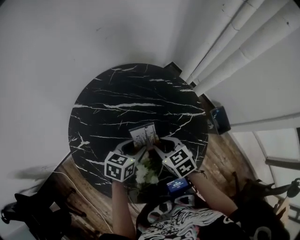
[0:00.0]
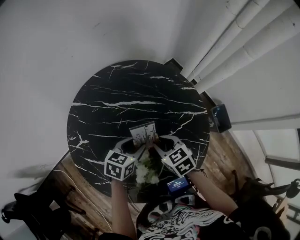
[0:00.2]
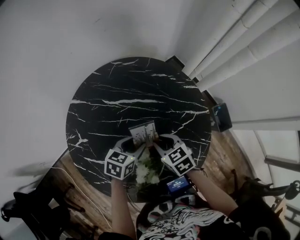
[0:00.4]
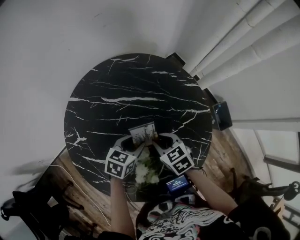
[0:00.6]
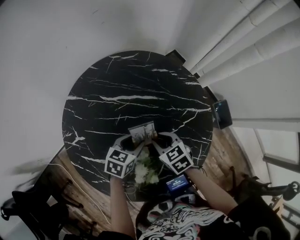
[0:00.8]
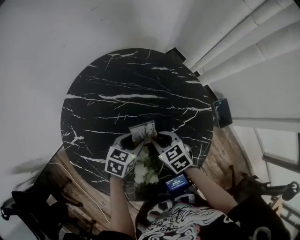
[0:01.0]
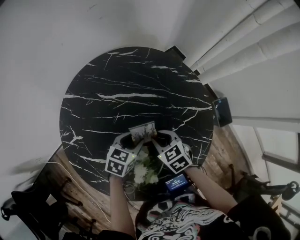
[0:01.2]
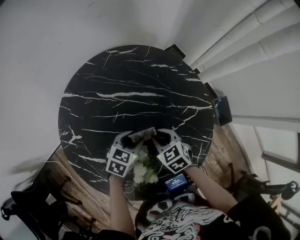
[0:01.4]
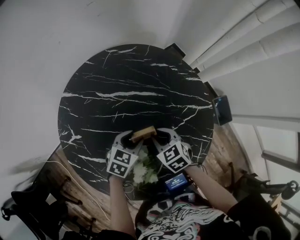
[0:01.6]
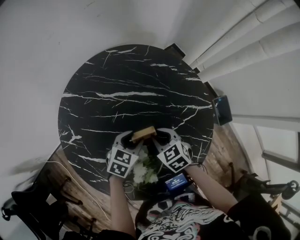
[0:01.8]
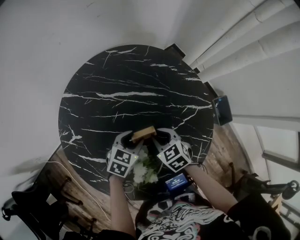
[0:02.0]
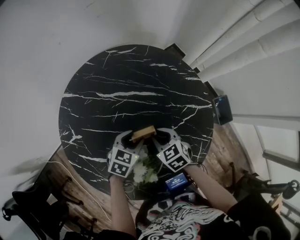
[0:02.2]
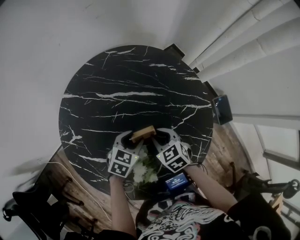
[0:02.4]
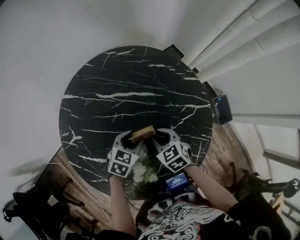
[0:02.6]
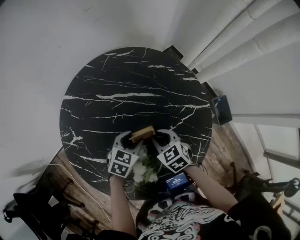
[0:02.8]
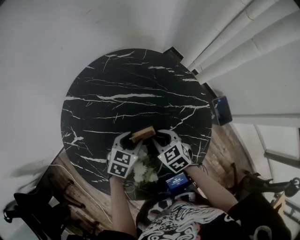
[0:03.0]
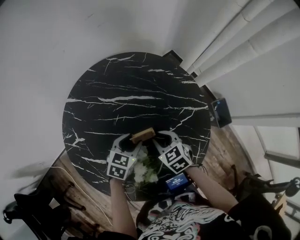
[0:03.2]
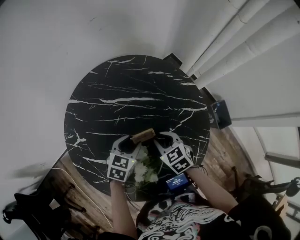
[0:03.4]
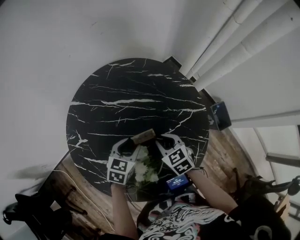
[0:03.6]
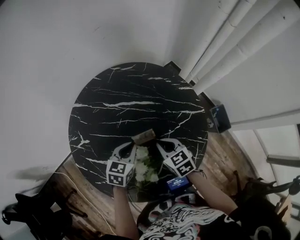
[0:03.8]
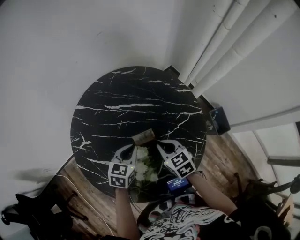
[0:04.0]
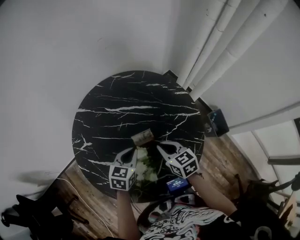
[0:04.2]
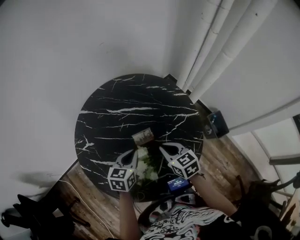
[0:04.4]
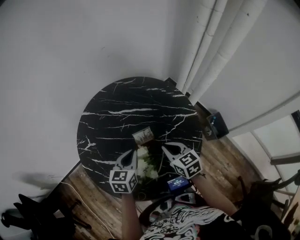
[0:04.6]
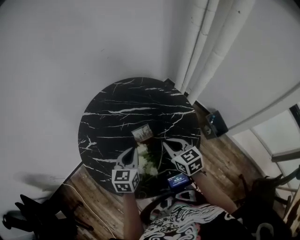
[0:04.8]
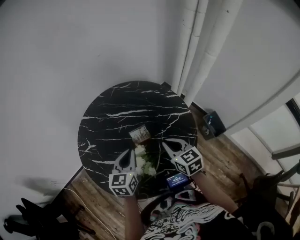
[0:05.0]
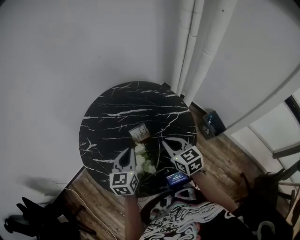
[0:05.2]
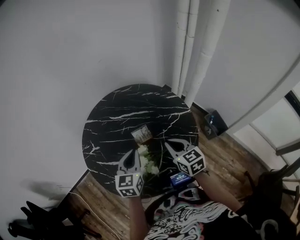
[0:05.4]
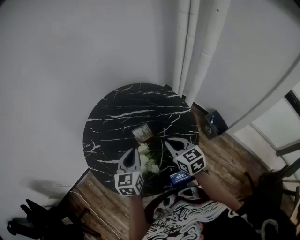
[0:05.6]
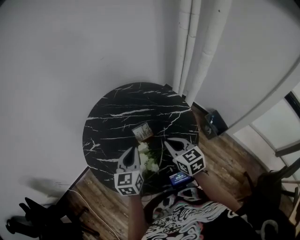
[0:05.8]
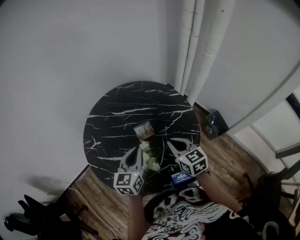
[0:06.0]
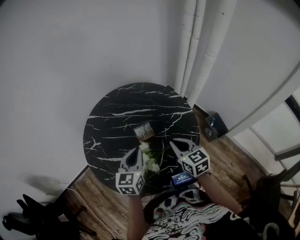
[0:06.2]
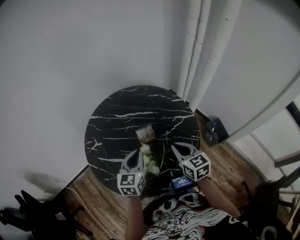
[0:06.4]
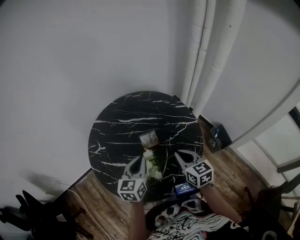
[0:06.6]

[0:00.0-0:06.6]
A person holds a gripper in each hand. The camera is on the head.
0:00.0 to 0:01.6: Both grippers travel together downward, some 10 cm.
0:01.6 to 0:03.2: The grippers move only a little.
0:03.2 to 0:05.0: The grippers both shift upward and backward by roughly 20 cm. The left gripper swivels roughly 30 degrees, and closes. Meanwhile the right gripper rotates about 30 degrees.
0:05.0 to 0:06.6: The right gripper moves backward, roughly 5 cm.

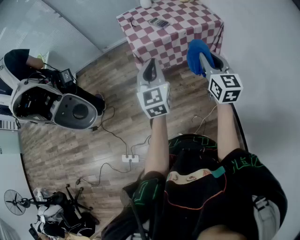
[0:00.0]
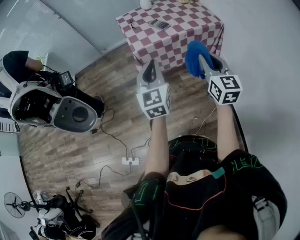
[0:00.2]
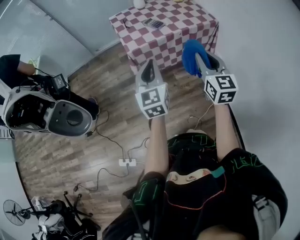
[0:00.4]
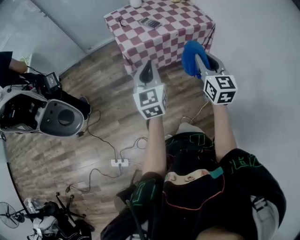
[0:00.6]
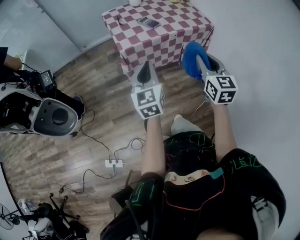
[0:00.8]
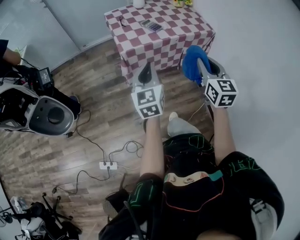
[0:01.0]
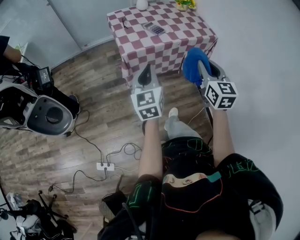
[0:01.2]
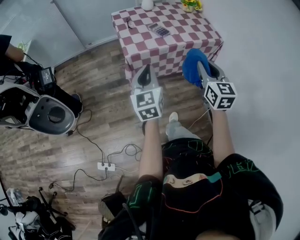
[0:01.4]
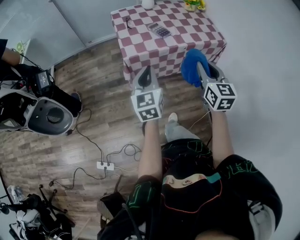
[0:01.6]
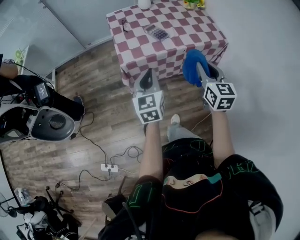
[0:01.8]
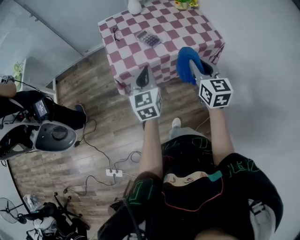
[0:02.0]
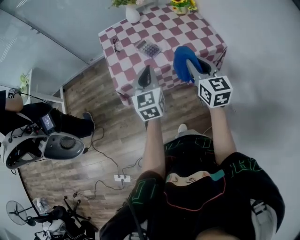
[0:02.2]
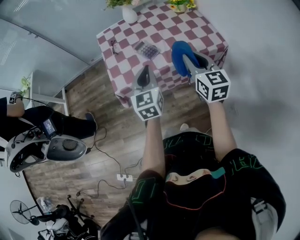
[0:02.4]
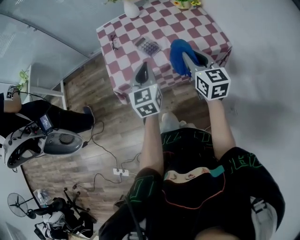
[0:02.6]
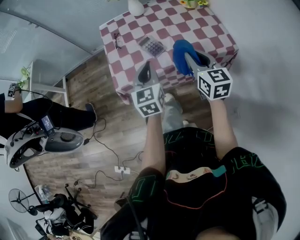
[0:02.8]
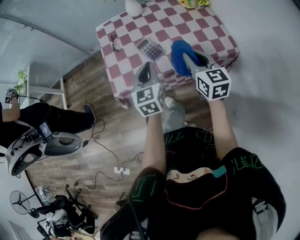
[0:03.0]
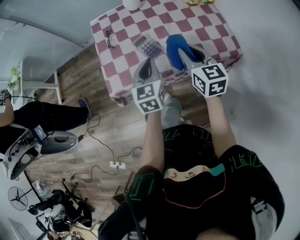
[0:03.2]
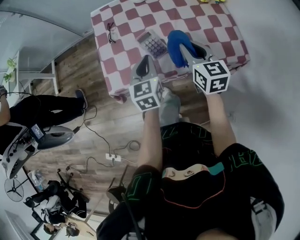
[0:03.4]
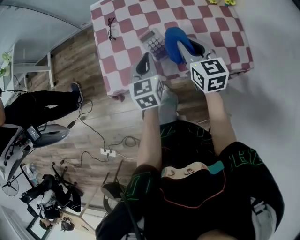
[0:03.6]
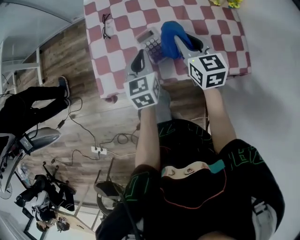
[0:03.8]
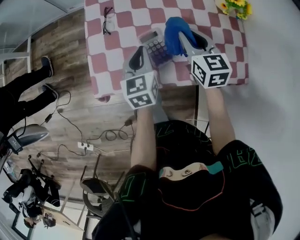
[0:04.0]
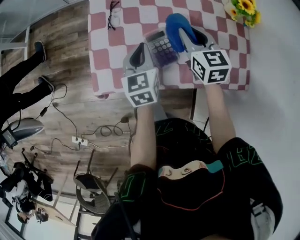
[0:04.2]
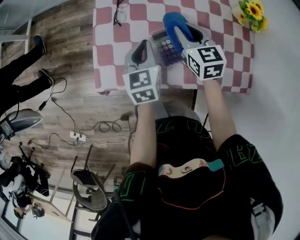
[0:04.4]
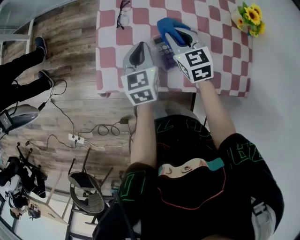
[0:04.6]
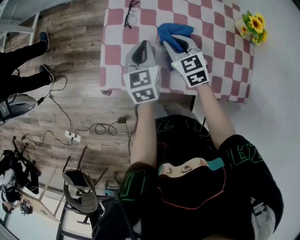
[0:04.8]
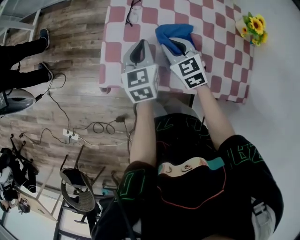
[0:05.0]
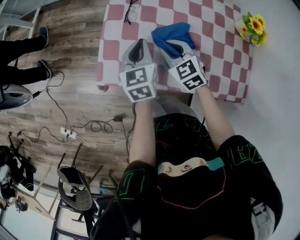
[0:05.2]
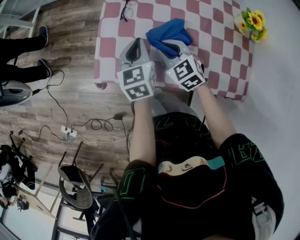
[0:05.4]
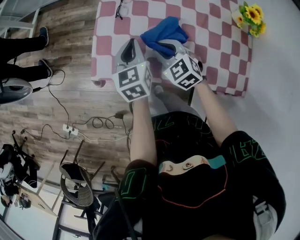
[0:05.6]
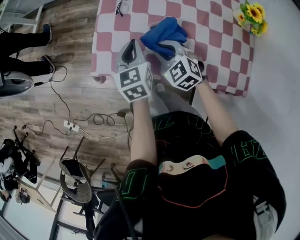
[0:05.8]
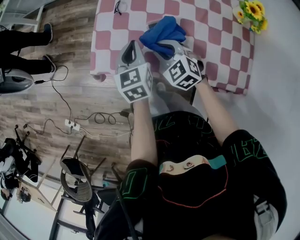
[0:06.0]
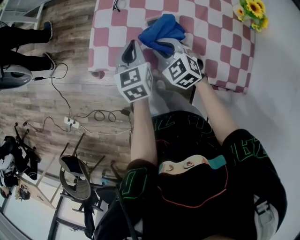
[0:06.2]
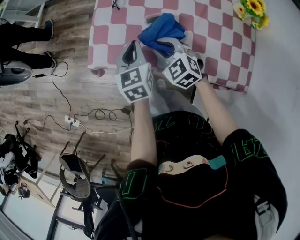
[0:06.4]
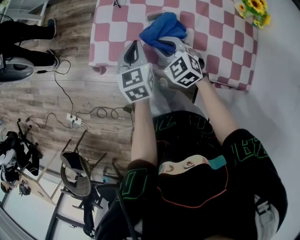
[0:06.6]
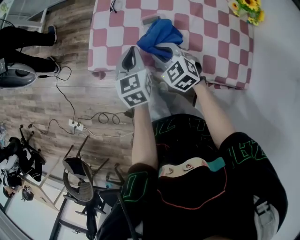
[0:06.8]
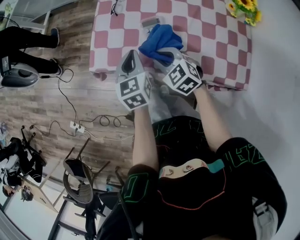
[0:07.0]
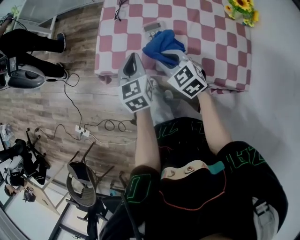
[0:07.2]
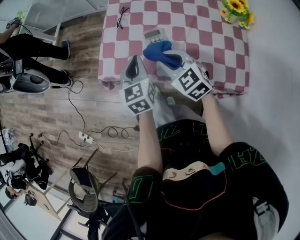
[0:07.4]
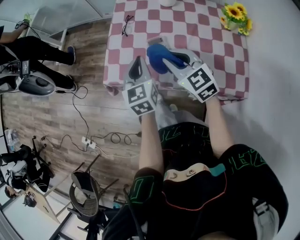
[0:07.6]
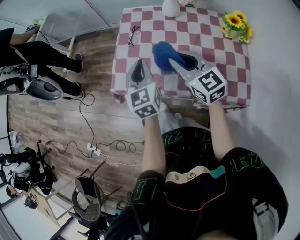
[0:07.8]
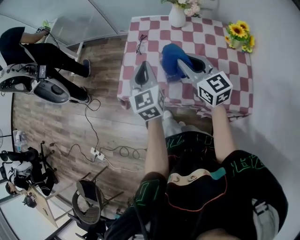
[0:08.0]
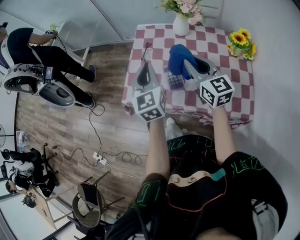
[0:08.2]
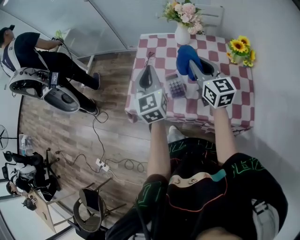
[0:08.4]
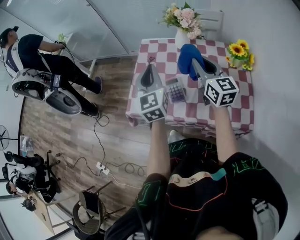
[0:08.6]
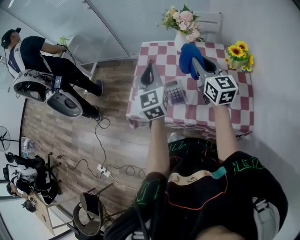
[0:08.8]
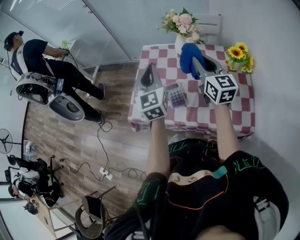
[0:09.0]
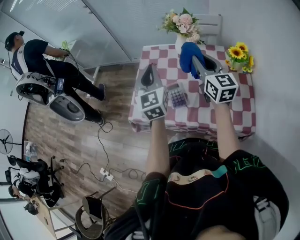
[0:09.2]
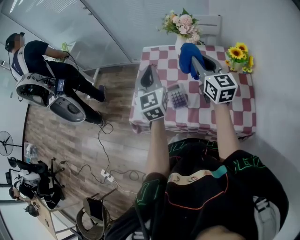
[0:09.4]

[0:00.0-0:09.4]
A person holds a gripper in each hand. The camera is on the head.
0:00.0 to 0:01.6: The left gripper travels forward and downward by roughly 15 cm. Meanwhile the right gripper shifts roughly 15 cm forward.
0:01.6 to 0:03.2: The right gripper travels forward by some 30 cm. Meanwhile the left gripper shifts about 30 cm forward and to the right.
0:03.2 to 0:04.8: Both grippers move forward, to the left and downward, about 25 cm. The right gripper turns by approximately 40 degrees. The left gripper rotates approximately 20 degrees.
0:04.8 to 0:06.2: Both grippers move backward, some 10 cm. The right gripper changes its angle by some 20 degrees.
0:06.2 to 0:07.8: Both grippers move upward, approximately 15 cm. The right gripper points its fingers about 30 degrees further upward.
0:07.8 to 0:09.4: The left gripper heads upward and forward, covering some 15 cm. Meanwhile the right gripper moves to the right, upward and forward, approximately 15 cm, and rotates approximately 20 degrees.

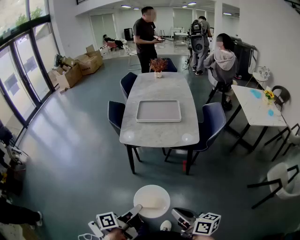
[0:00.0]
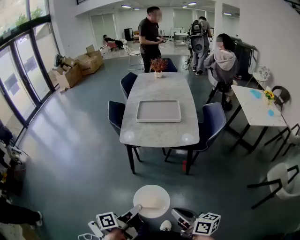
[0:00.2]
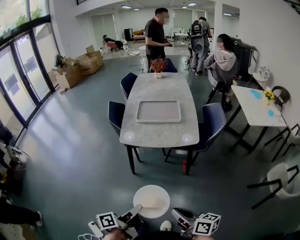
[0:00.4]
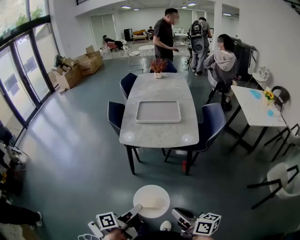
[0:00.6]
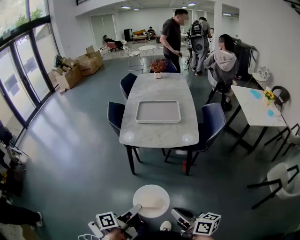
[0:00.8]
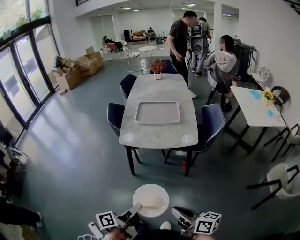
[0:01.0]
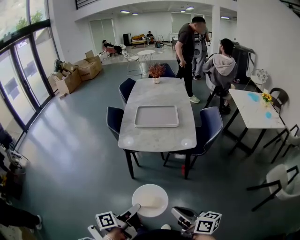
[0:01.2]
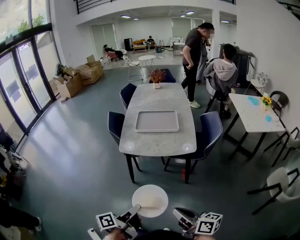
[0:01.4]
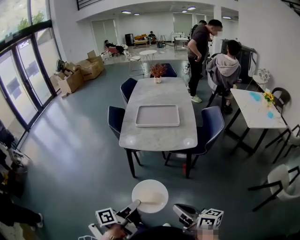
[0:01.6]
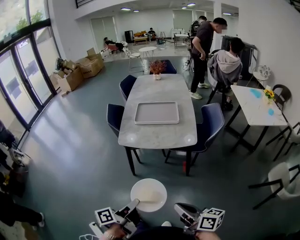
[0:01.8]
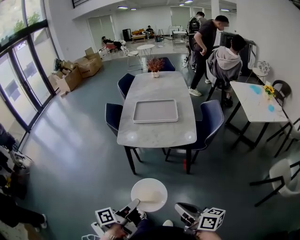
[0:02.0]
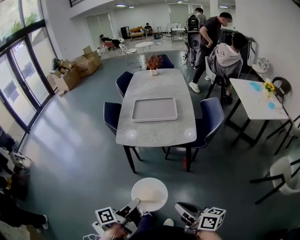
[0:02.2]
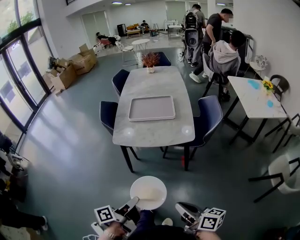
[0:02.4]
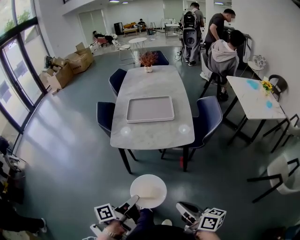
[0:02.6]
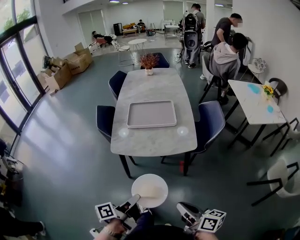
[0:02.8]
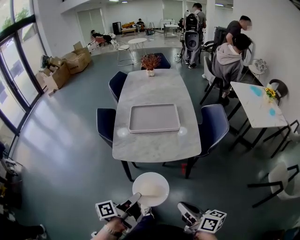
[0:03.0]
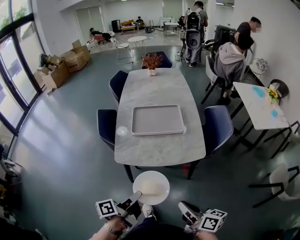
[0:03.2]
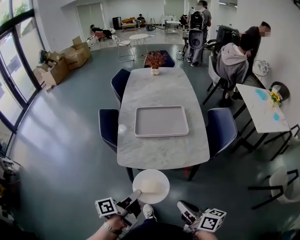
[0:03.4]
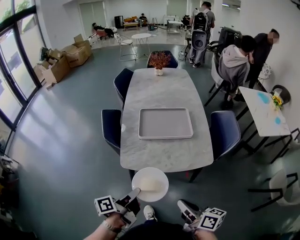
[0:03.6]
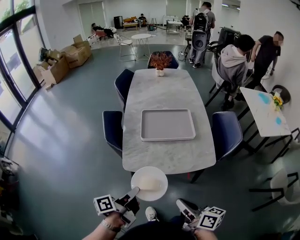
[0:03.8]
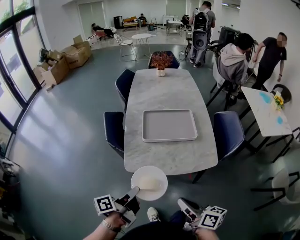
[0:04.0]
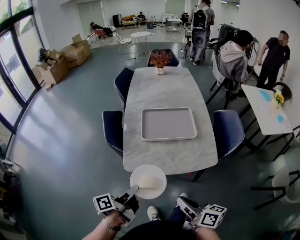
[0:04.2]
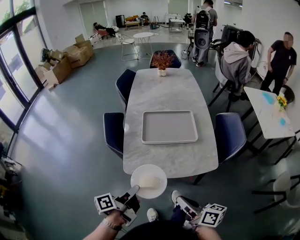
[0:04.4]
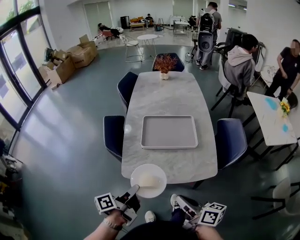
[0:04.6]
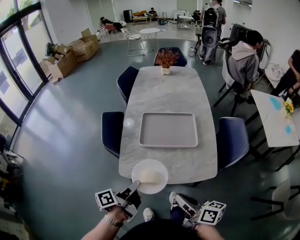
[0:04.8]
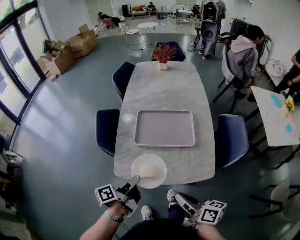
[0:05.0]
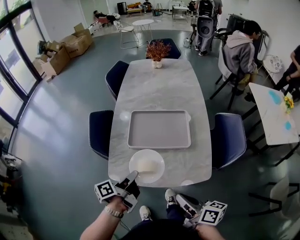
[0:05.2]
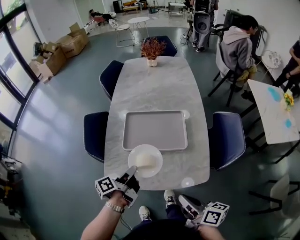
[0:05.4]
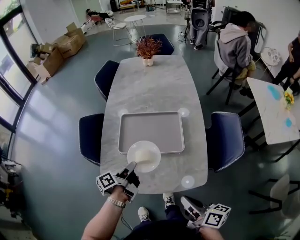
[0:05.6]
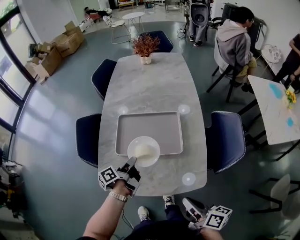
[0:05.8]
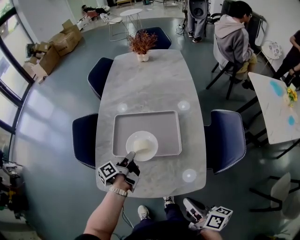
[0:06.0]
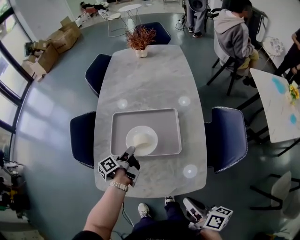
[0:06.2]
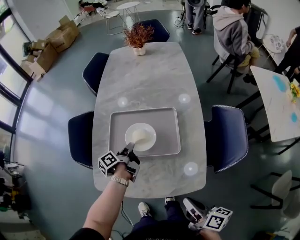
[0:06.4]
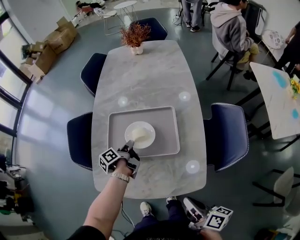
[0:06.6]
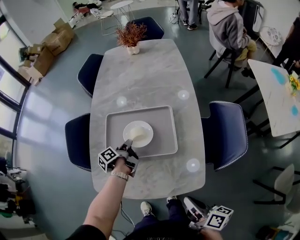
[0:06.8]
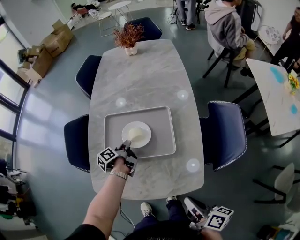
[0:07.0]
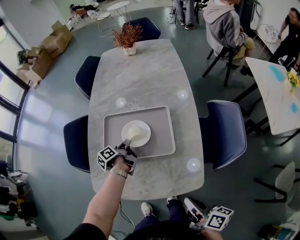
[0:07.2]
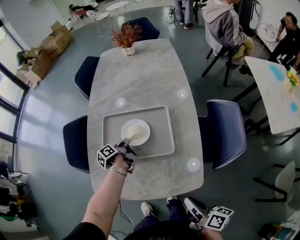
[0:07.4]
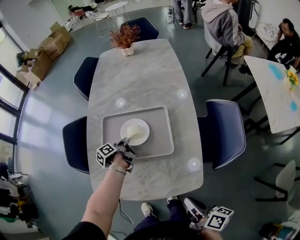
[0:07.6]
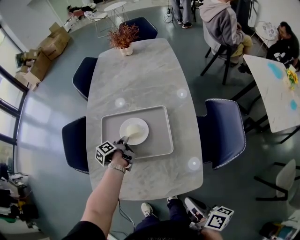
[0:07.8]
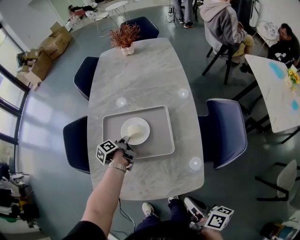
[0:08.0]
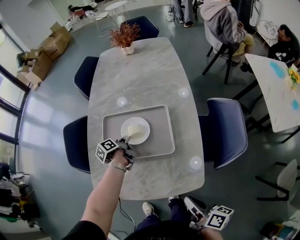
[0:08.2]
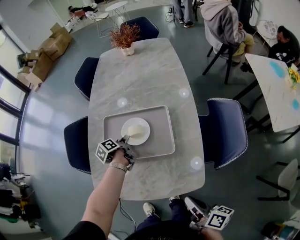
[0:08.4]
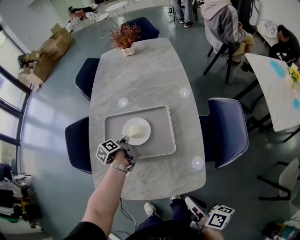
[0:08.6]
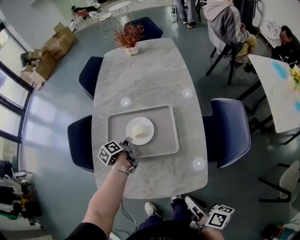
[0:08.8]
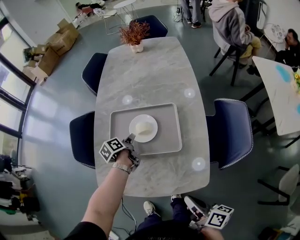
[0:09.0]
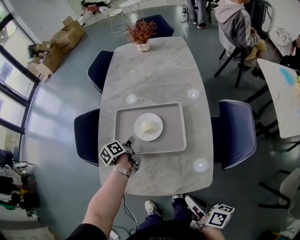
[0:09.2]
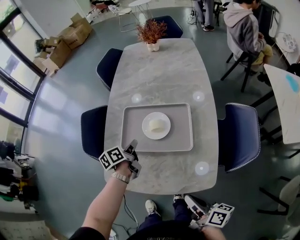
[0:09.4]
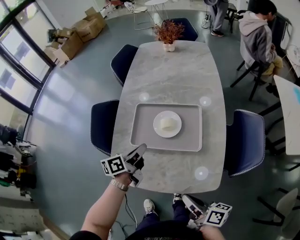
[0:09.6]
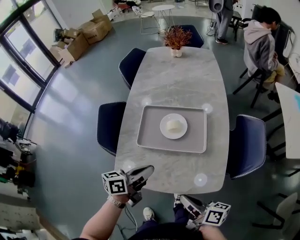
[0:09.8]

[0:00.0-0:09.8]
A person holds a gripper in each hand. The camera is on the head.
0:01.4 to 0:02.8: The right gripper moves about 10 cm.
0:02.8 to 0:04.2: The right gripper shifts by some 20 cm.
0:04.2 to 0:05.6: The right gripper moves about 20 cm.
0:05.6 to 0:07.0: The right gripper moves roughly 10 cm.
0:08.4 to 0:09.8: The right gripper moves some 10 cm, and turns by some 20 degrees.
